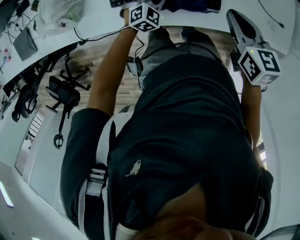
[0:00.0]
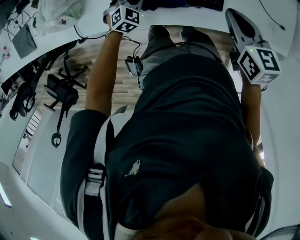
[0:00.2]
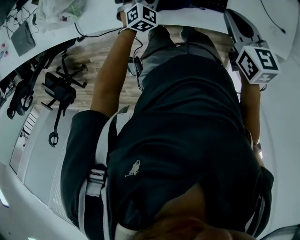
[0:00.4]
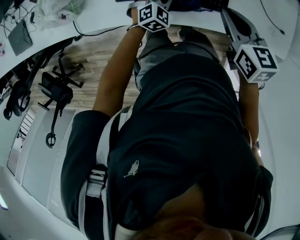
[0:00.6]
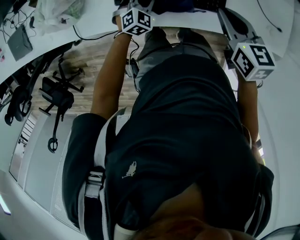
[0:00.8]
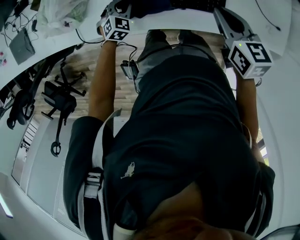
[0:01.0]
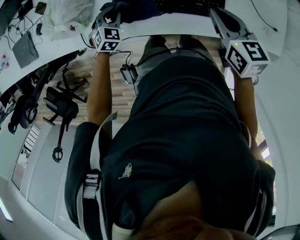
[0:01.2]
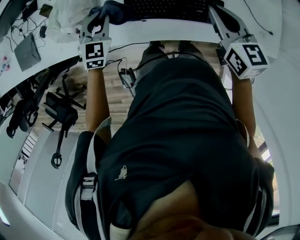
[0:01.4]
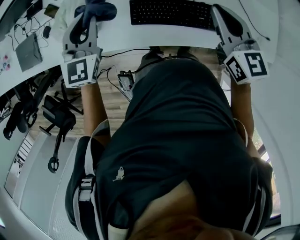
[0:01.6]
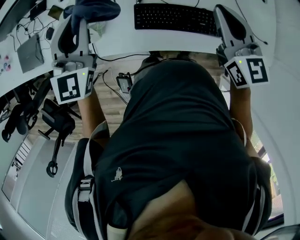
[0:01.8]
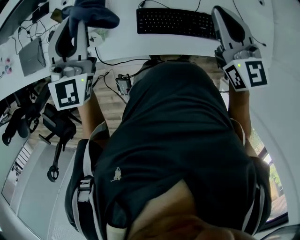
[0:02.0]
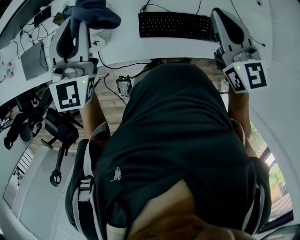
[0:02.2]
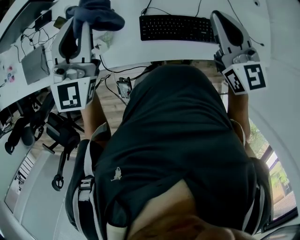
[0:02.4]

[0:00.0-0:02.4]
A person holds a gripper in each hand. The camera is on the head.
0:00.0 to 0:01.2: The right gripper heads to the left, covering some 10 cm. Meanwhile the left gripper goes left and right, roughly 25 cm each way, reversing 2 times, and turns by about 20 degrees.
0:01.2 to 0:02.4: The left gripper travels upward by roughly 40 cm, and angles its fingers upward, by about 50 degrees; the right gripper moves upward and to the left, some 20 cm, and rotates approximately 30 degrees.

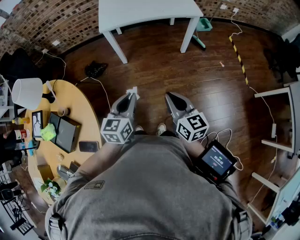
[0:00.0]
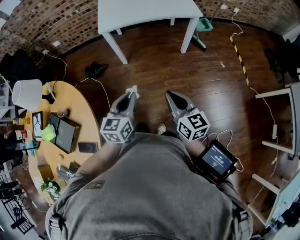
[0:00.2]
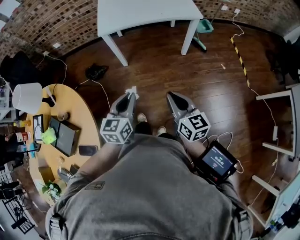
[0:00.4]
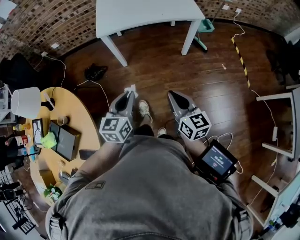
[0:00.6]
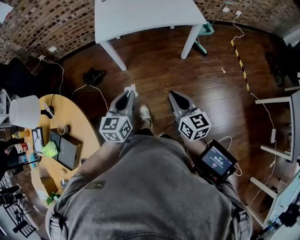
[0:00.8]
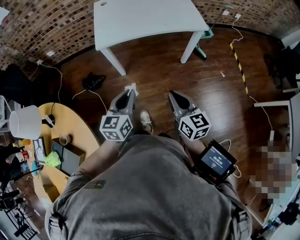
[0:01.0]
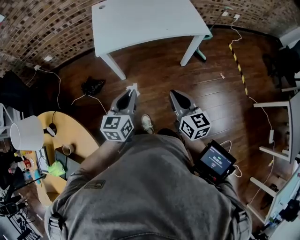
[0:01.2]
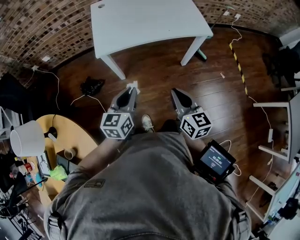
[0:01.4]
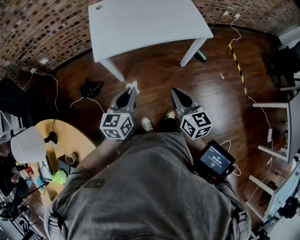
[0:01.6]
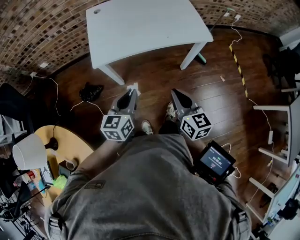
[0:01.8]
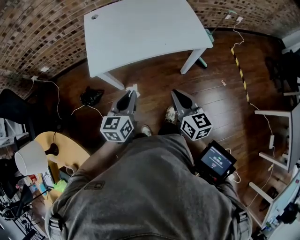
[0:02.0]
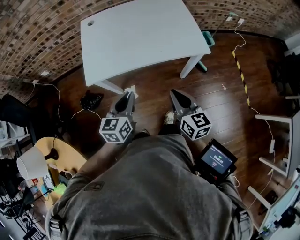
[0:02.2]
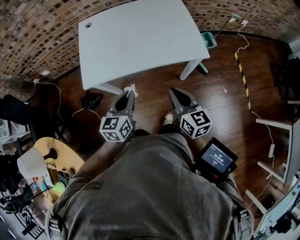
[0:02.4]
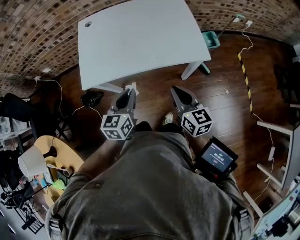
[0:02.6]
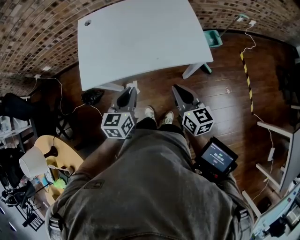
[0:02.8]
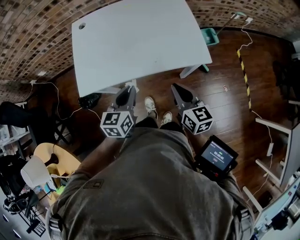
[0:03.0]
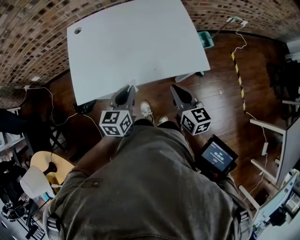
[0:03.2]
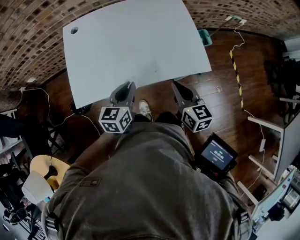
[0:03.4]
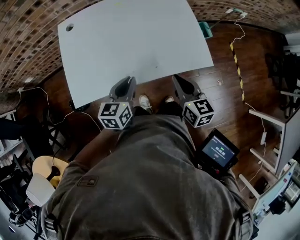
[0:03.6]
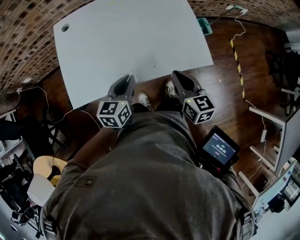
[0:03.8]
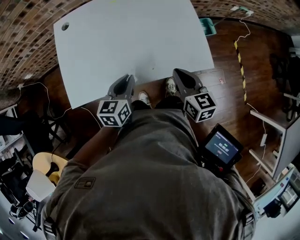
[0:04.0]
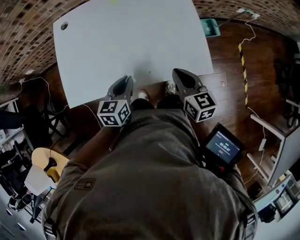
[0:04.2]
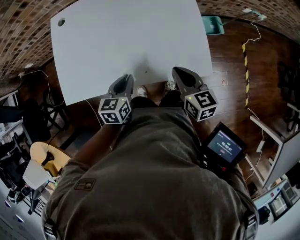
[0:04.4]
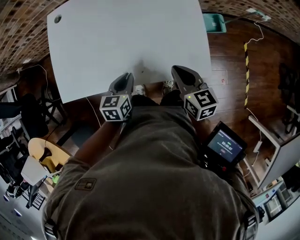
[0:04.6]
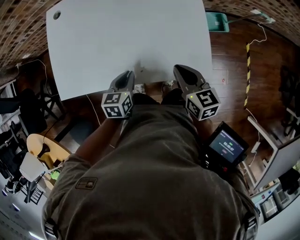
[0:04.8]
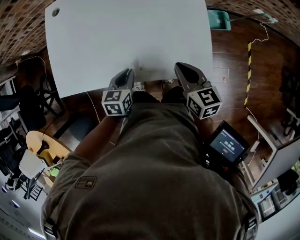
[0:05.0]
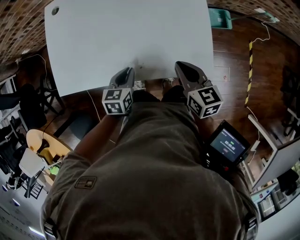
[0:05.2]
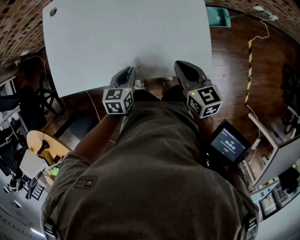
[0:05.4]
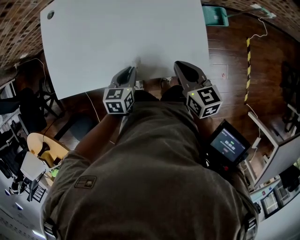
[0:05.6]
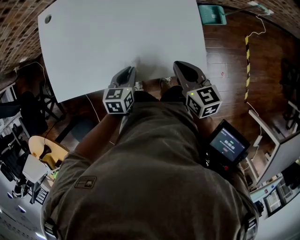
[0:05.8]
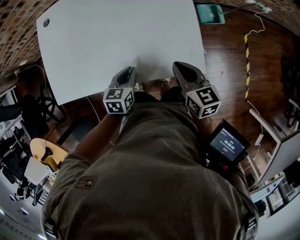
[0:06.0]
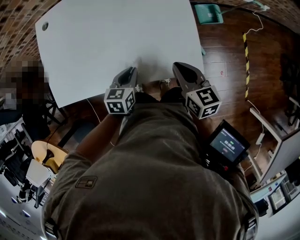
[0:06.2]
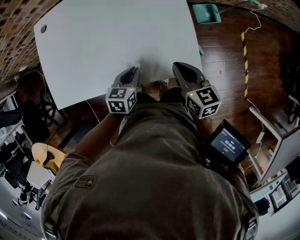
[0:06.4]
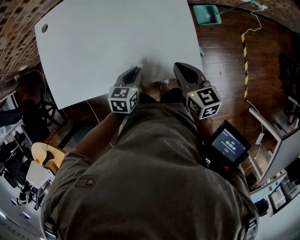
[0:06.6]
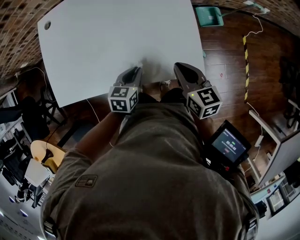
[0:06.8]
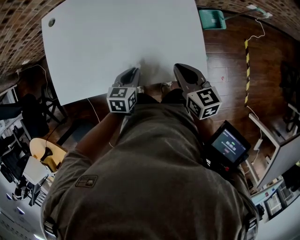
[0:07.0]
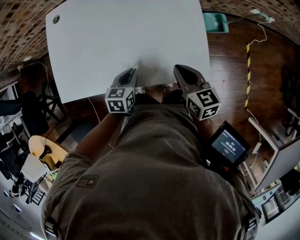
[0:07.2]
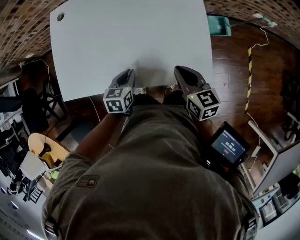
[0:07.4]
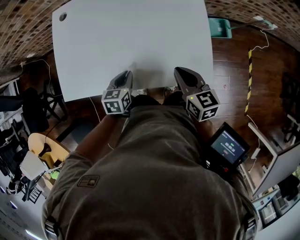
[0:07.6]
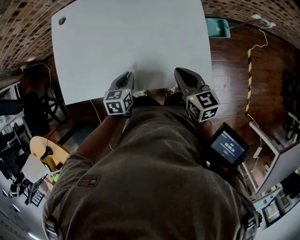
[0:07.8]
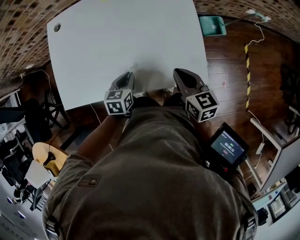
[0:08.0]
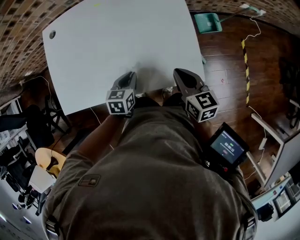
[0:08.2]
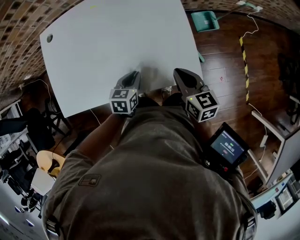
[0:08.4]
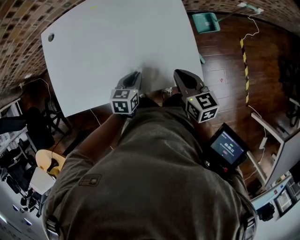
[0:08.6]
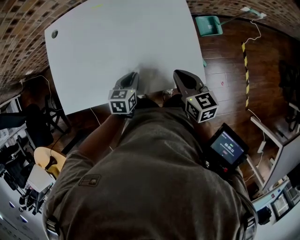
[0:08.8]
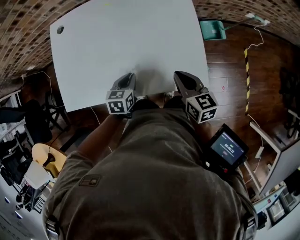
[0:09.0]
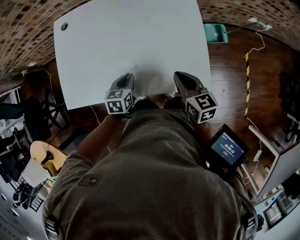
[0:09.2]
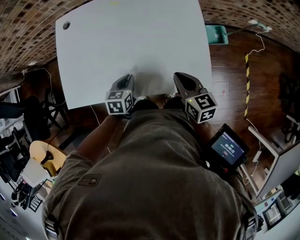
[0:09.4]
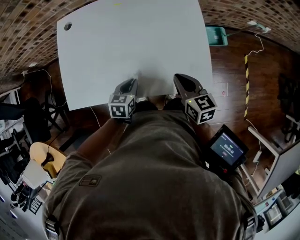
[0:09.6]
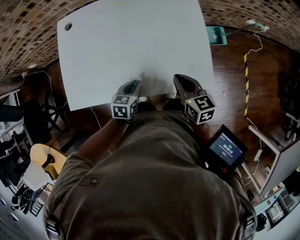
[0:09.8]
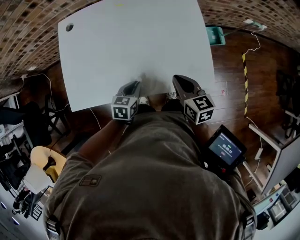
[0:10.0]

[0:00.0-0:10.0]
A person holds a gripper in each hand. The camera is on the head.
0:00.0 to 0:01.4: Both grippers travel together forward, approximately 25 cm.
0:01.4 to 0:02.8: The two grippers go roughly 25 cm forward and to the right.
0:02.8 to 0:04.2: The left gripper moves forward and downward, roughly 15 cm. Meanwhile the right gripper heads forward, covering about 15 cm.
0:04.2 to 0:05.8: The right gripper travels to the right by about 5 cm, while the left gripper is displaced downward and to the right by some 10 cm.
0:05.8 to 0:07.2: The grippers move only a little.
0:07.2 to 0:08.6: The left gripper changes place by about 5 cm.
0:08.6 to 0:10.0: Both grippers travel together to the left, some 10 cm.

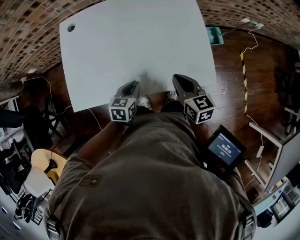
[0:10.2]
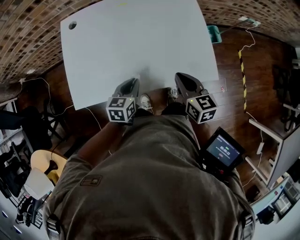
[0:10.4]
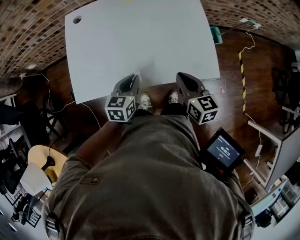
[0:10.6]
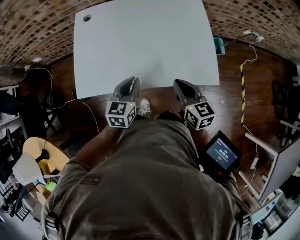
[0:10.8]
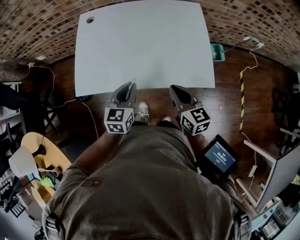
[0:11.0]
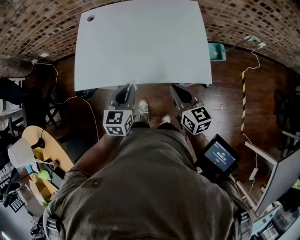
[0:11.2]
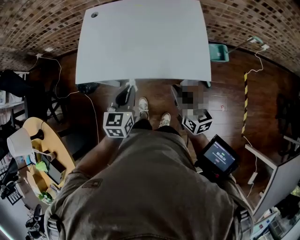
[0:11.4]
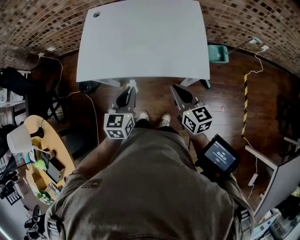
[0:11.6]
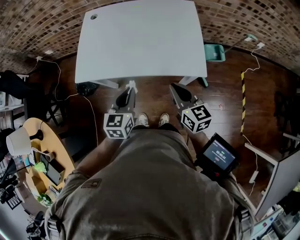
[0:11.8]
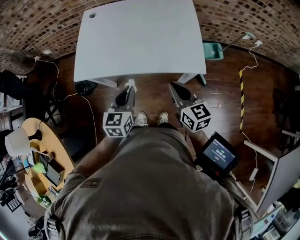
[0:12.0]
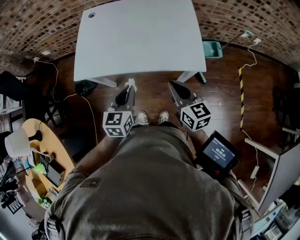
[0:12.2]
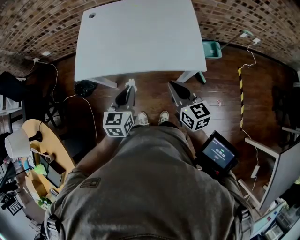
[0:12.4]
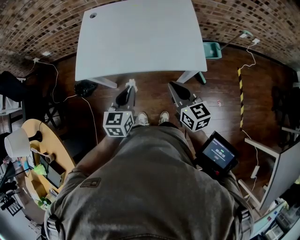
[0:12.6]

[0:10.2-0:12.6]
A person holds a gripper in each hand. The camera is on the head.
0:10.2 to 0:11.4: The right gripper is displaced backward and upward by approximately 15 cm, while the left gripper is displaced upward and backward by some 20 cm, and rotates approximately 30 degrees.
0:11.4 to 0:12.6: The right gripper shifts by some 5 cm.

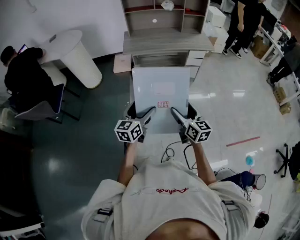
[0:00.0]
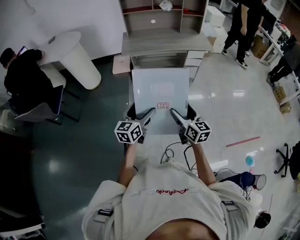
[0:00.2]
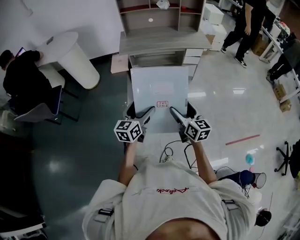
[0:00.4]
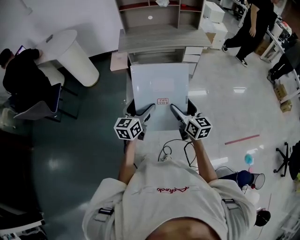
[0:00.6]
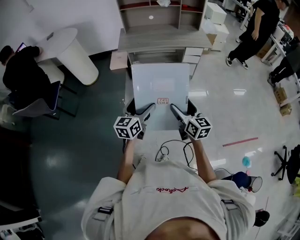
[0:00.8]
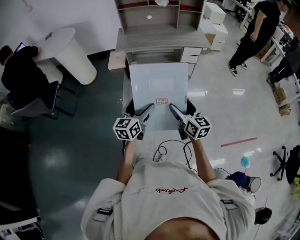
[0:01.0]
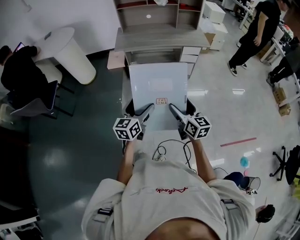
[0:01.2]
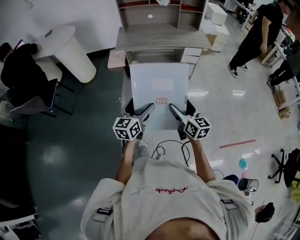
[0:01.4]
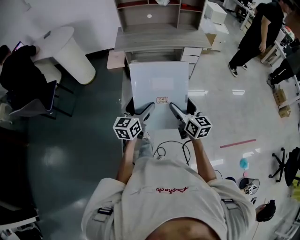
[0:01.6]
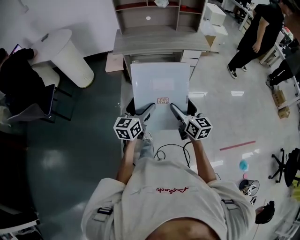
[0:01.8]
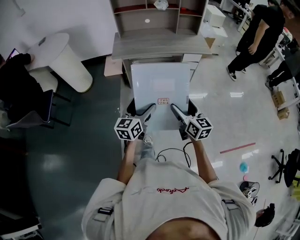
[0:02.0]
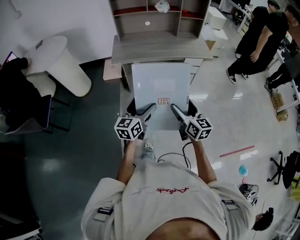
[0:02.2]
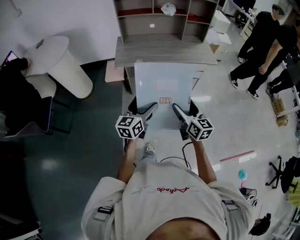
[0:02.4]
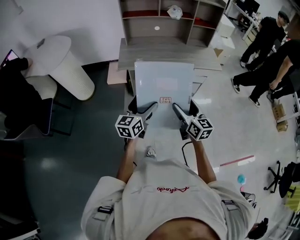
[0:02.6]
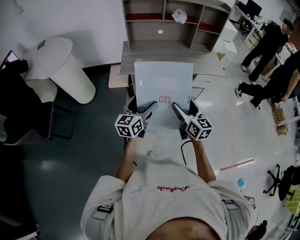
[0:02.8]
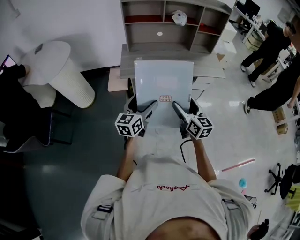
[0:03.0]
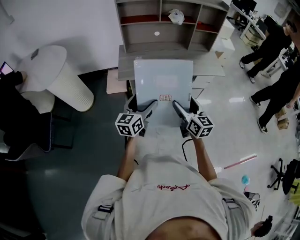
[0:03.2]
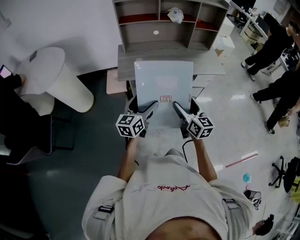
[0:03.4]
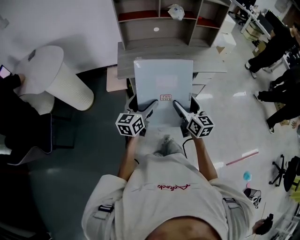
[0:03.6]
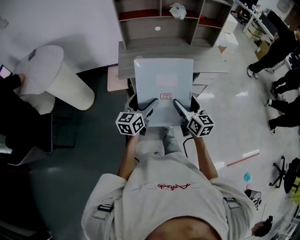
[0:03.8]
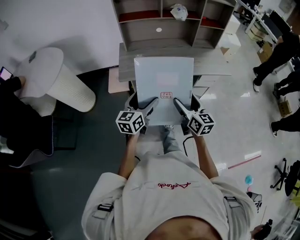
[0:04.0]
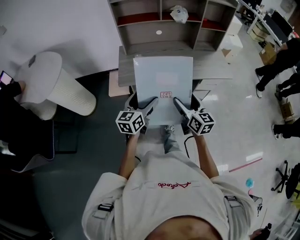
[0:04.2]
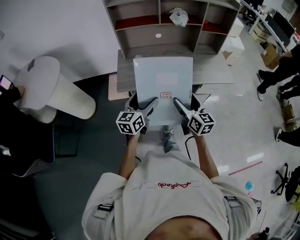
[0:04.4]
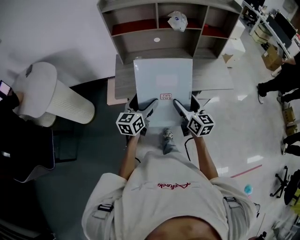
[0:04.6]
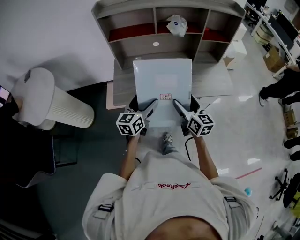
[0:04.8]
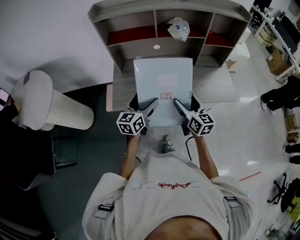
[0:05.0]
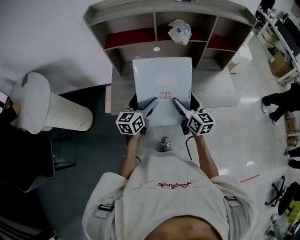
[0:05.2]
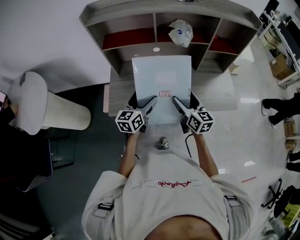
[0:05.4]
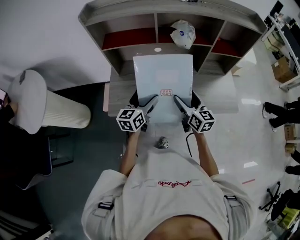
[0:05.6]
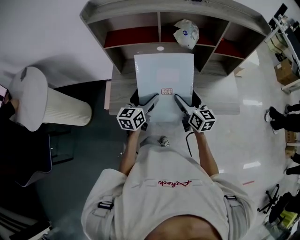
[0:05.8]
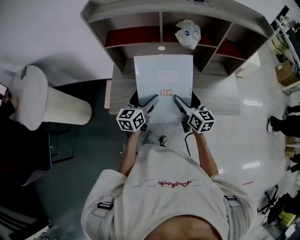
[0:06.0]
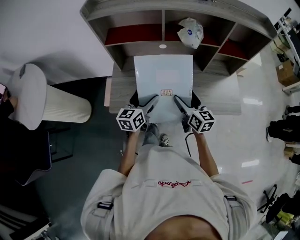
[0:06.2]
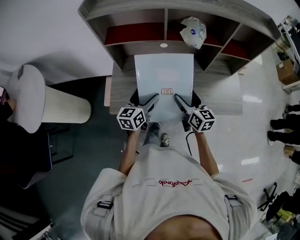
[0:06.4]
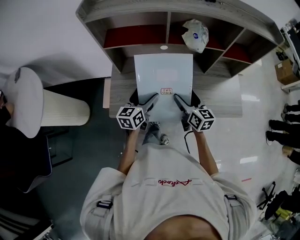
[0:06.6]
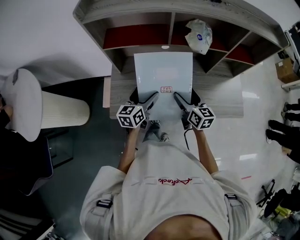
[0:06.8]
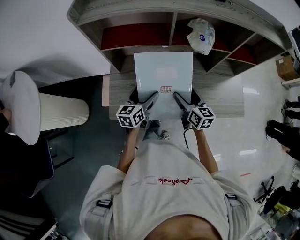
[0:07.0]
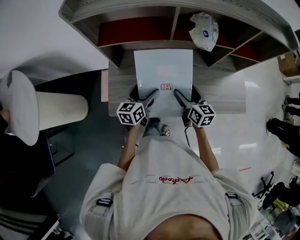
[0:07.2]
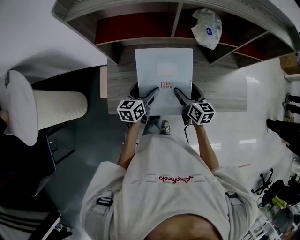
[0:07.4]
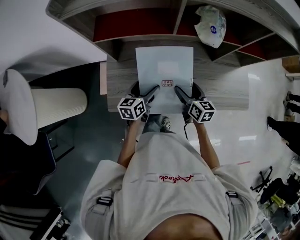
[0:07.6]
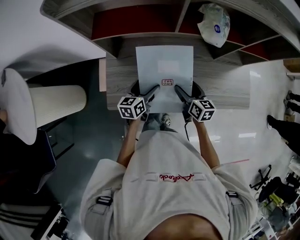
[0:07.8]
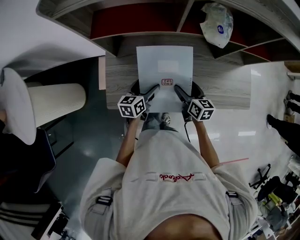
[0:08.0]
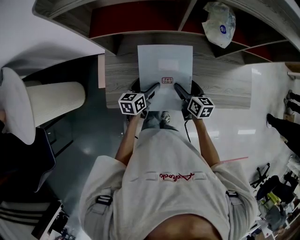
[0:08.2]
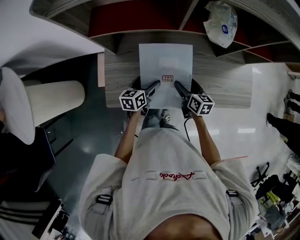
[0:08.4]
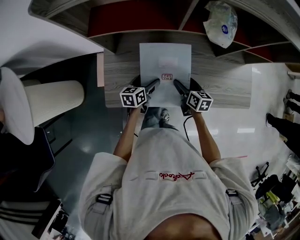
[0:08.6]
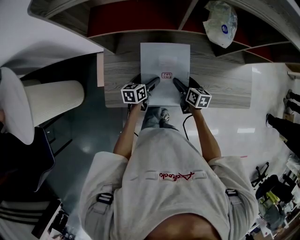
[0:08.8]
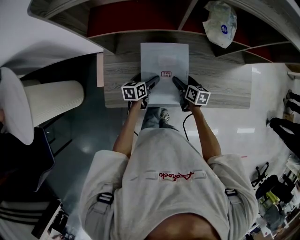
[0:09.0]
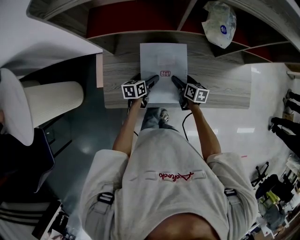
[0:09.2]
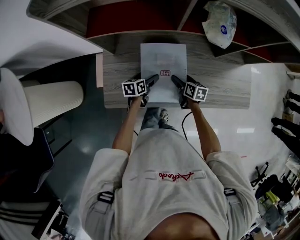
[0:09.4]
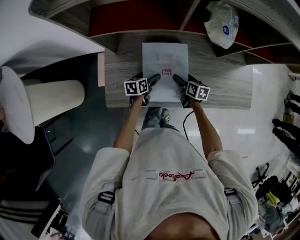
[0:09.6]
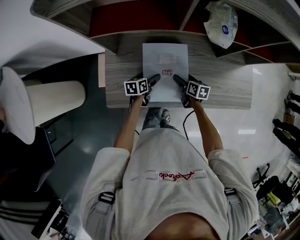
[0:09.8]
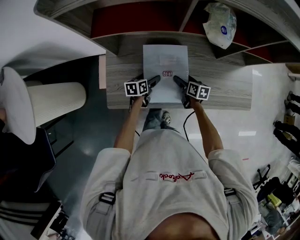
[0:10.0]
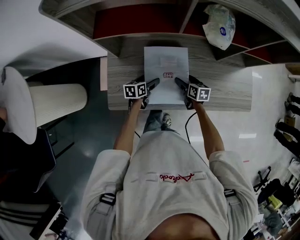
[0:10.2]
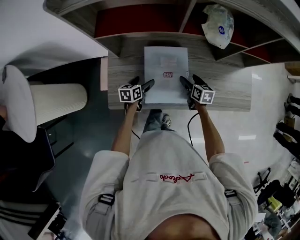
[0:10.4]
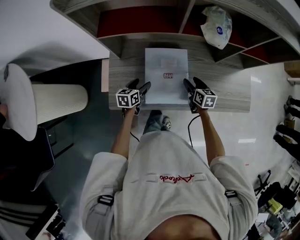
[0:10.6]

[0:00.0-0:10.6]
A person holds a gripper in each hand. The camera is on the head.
0:00.0 to 0:01.6: Both grippers move to the right, approximately 10 cm.
0:01.6 to 0:03.0: The grippers both shift forward by some 30 cm.
0:03.0 to 0:04.6: The two grippers go approximately 25 cm forward.
0:04.6 to 0:06.0: The grippers both shift forward by about 20 cm.
0:06.0 to 0:07.6: The grippers both shift downward and forward by some 15 cm.
0:07.6 to 0:09.0: Both grippers travel together downward, some 10 cm.
0:09.0 to 0:10.6: The left gripper moves some 5 cm.
